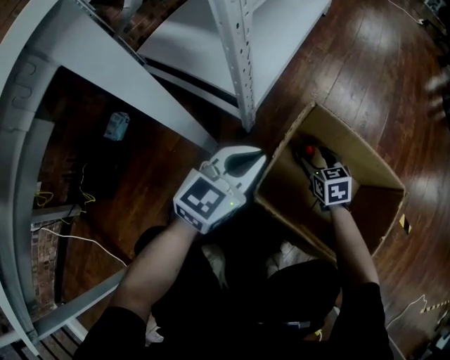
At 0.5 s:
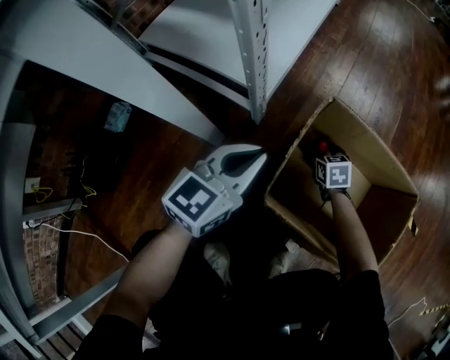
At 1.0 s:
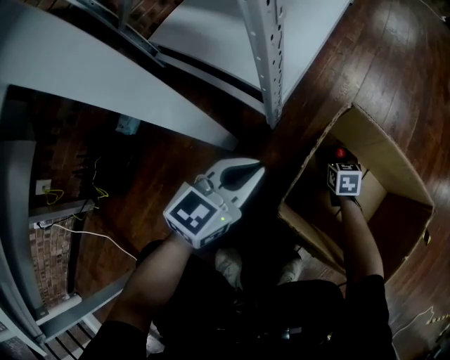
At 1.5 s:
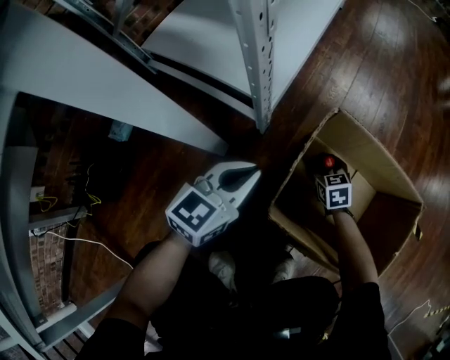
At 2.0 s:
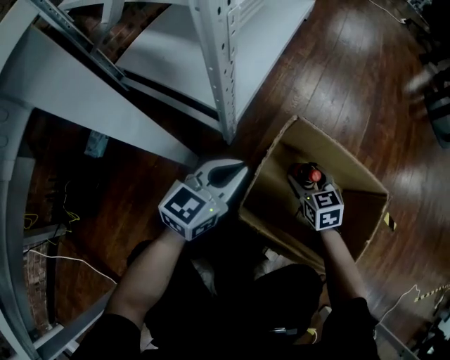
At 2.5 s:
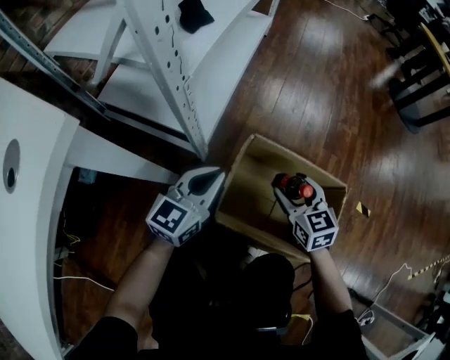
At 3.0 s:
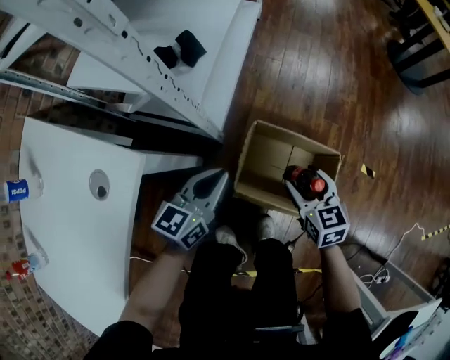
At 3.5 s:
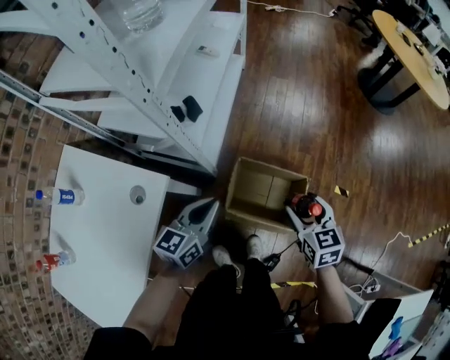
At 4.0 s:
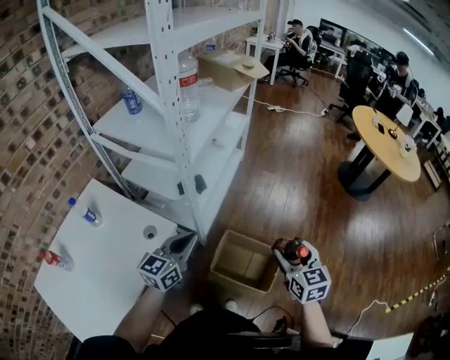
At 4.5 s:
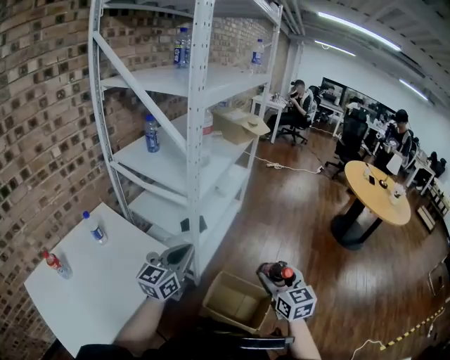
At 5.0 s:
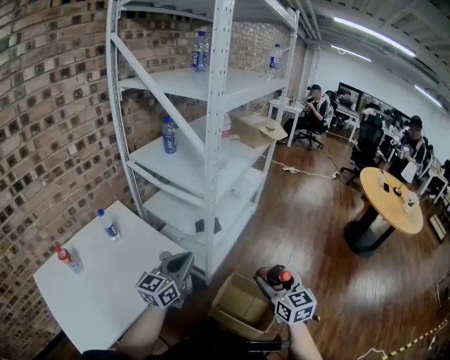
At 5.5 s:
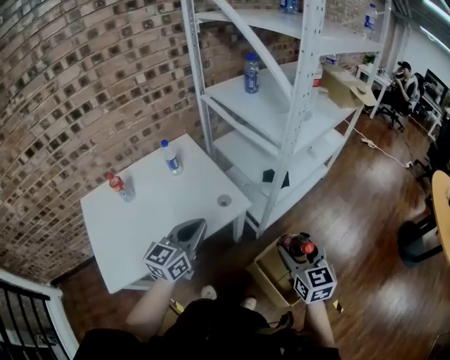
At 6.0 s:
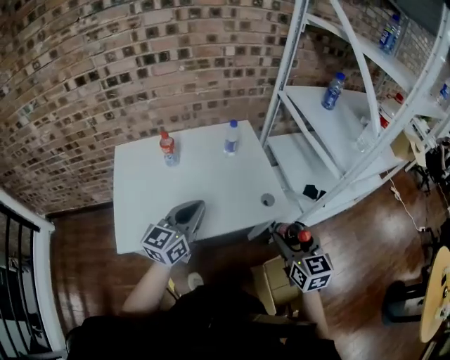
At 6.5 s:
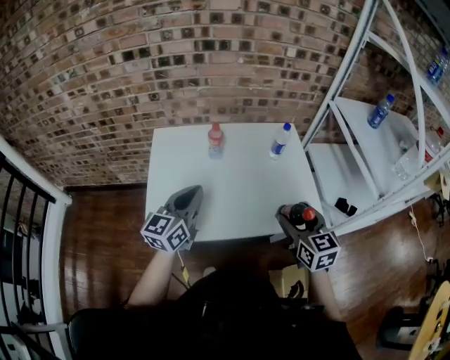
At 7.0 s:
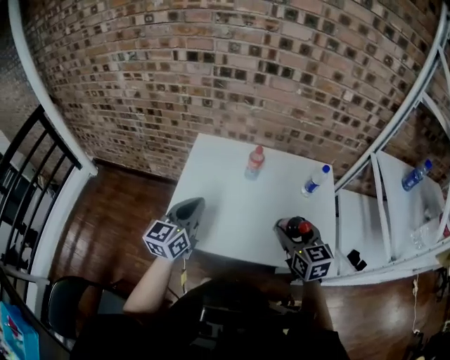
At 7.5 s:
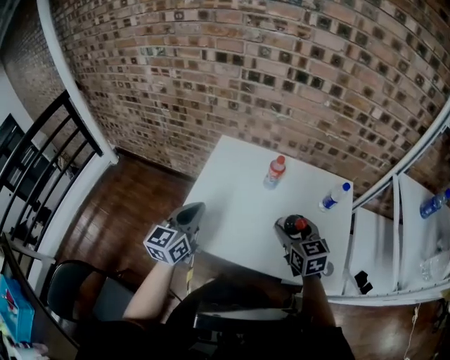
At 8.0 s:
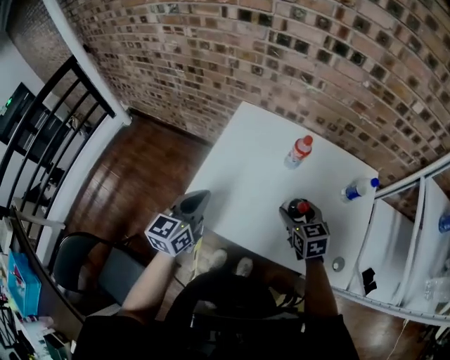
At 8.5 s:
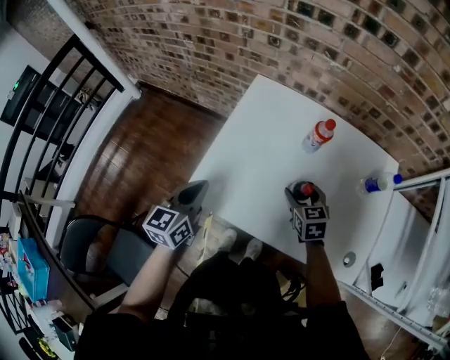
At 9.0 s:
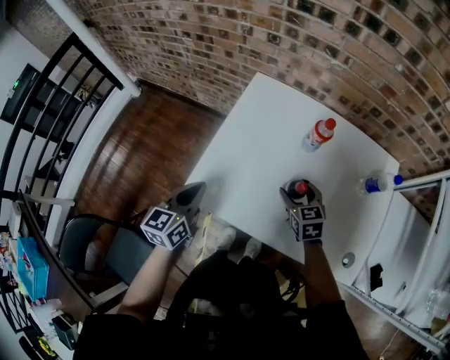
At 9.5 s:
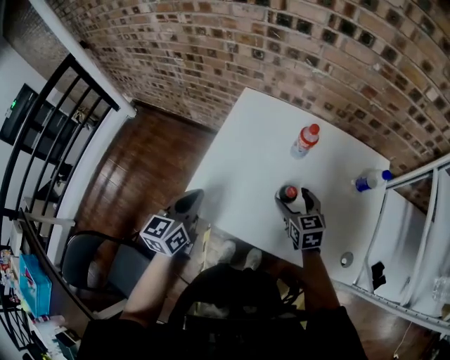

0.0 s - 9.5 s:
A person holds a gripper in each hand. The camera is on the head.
0.0 s - 2.0 s: The right gripper goes downward and returns, roughly 15 cm each way.
2.0 s - 4.0 s: The two grippers go approximately 70 cm upward. The right gripper swivels about 20 degrees.
4.0 s - 5.5 s: The right gripper changes place by some 20 cm, and rotates approximately 30 degrees; the left gripper changes place by approximately 20 cm, and swivels some 30 degrees.
5.5 s - 7.5 s: The pair of grippers is taken approximately 50 cm. The right gripper turns by roughly 60 degrees, while the left gripper turns by about 60 degrees.
7.5 s - 9.5 s: The right gripper heads downward and forward, covering roughly 15 cm; the left gripper moves downward, approximately 10 cm.

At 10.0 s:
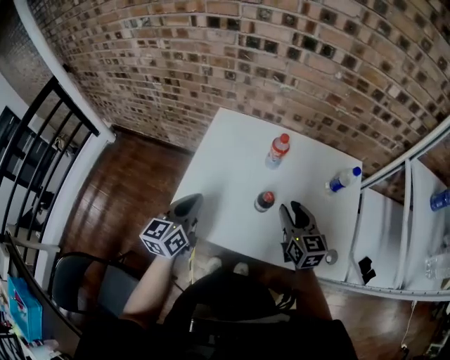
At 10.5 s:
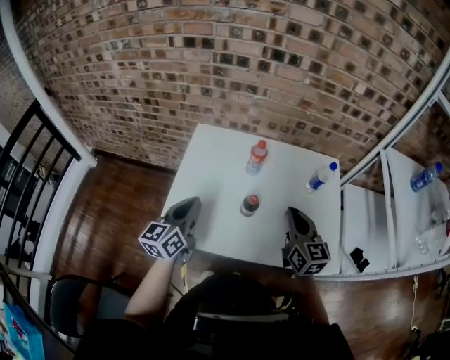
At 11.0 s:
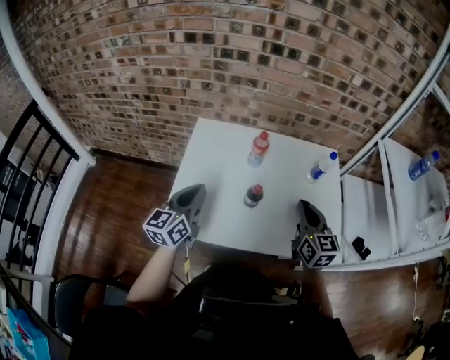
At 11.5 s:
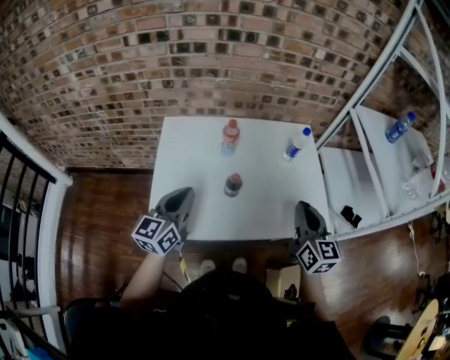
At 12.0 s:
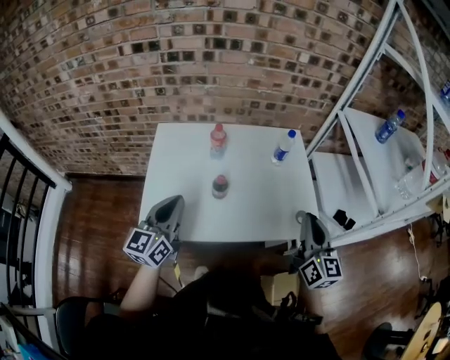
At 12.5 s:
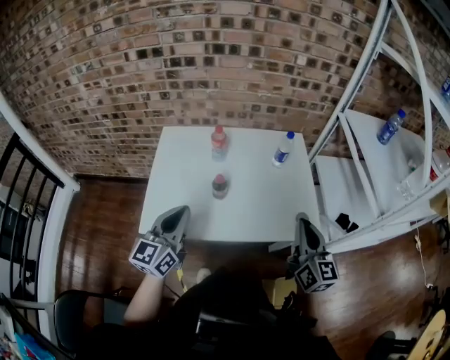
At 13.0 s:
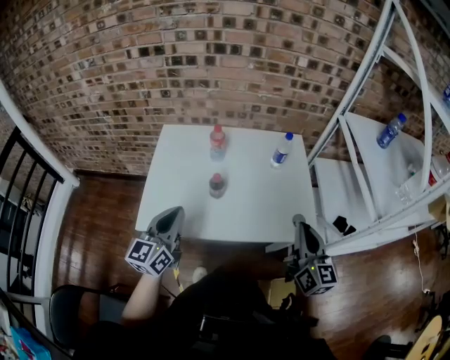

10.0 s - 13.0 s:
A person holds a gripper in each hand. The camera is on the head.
10.0 s - 11.5 s: The left gripper goes about 5 cm to the right, and turns by approximately 20 degrees. The right gripper goes approximately 20 cm backward, to the right and upward, changes its angle by about 30 degrees, and closes up.
11.5 s - 13.0 s: The left gripper shifts about 10 cm backward and to the right; the right gripper shifts roughly 10 cm to the right and backward.

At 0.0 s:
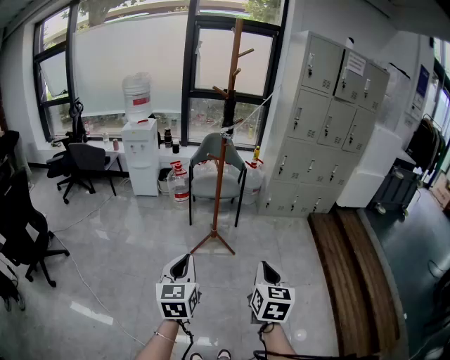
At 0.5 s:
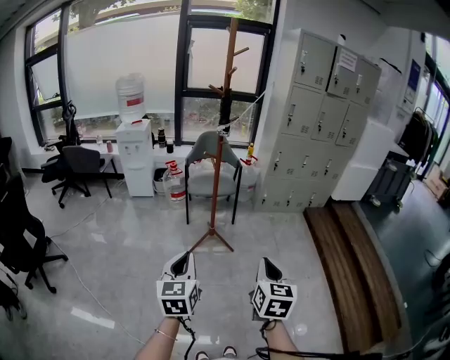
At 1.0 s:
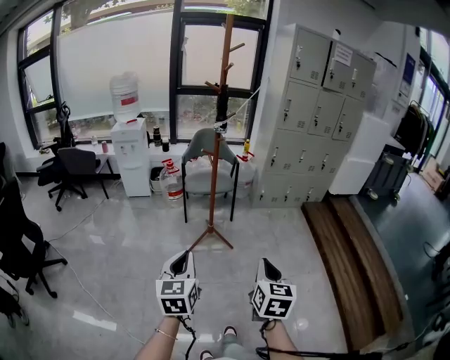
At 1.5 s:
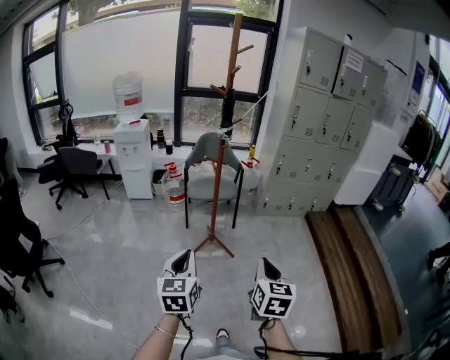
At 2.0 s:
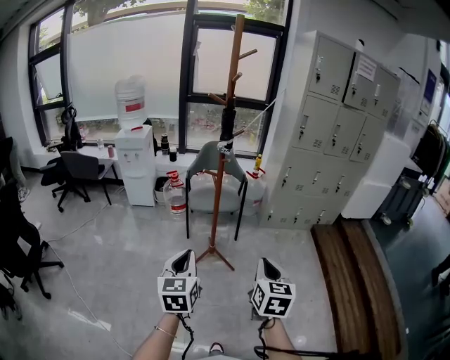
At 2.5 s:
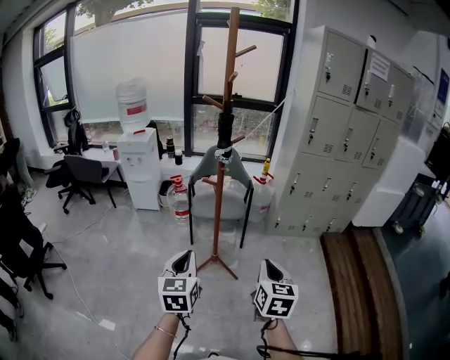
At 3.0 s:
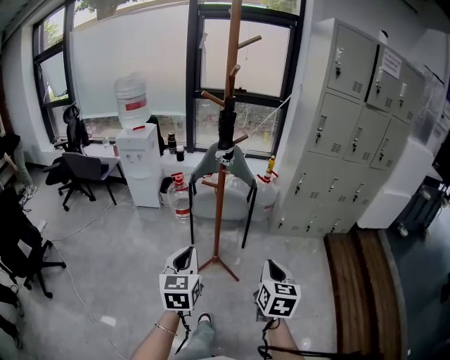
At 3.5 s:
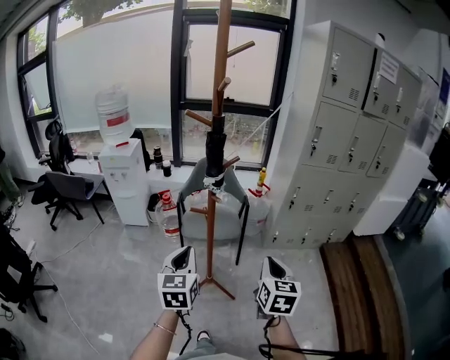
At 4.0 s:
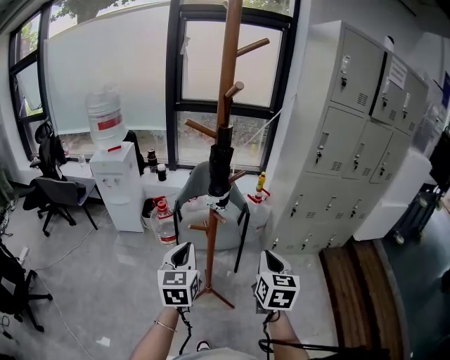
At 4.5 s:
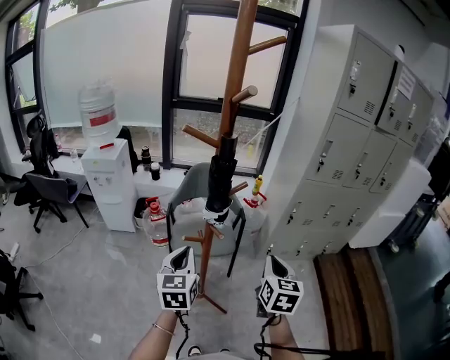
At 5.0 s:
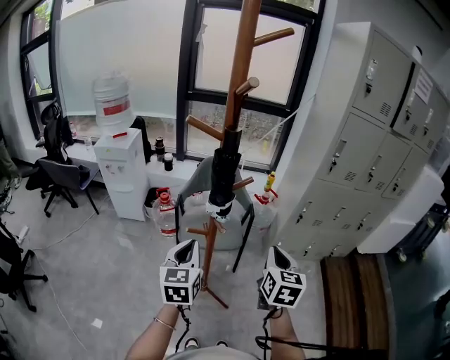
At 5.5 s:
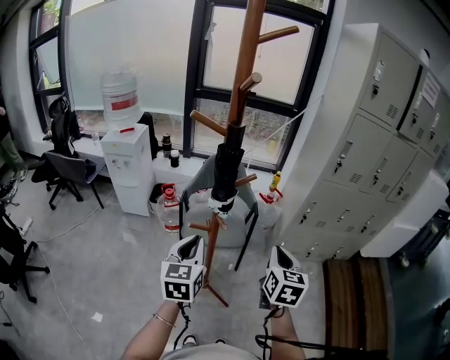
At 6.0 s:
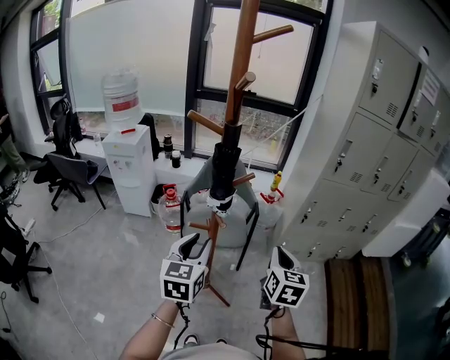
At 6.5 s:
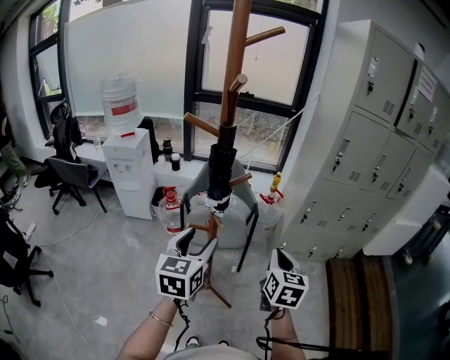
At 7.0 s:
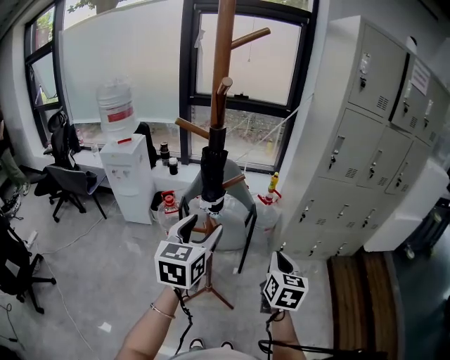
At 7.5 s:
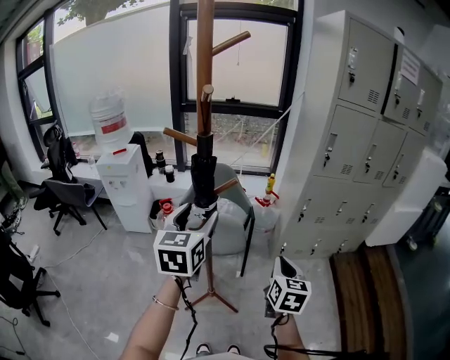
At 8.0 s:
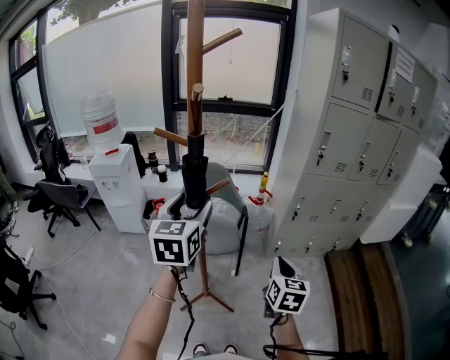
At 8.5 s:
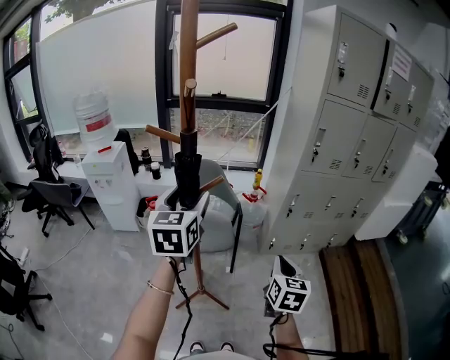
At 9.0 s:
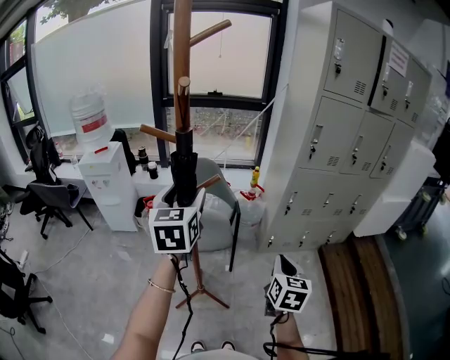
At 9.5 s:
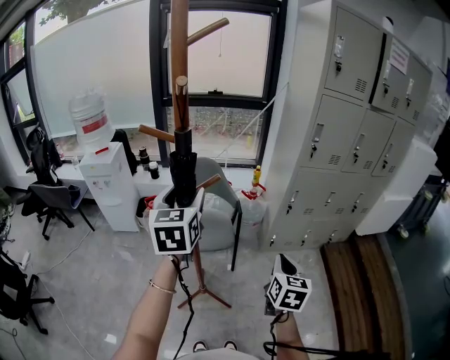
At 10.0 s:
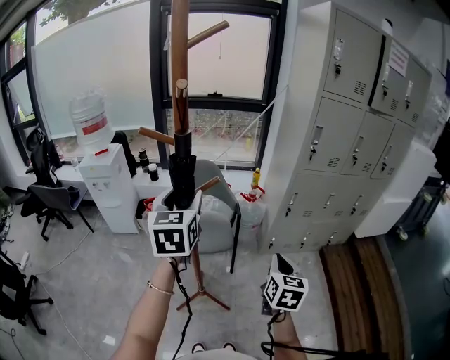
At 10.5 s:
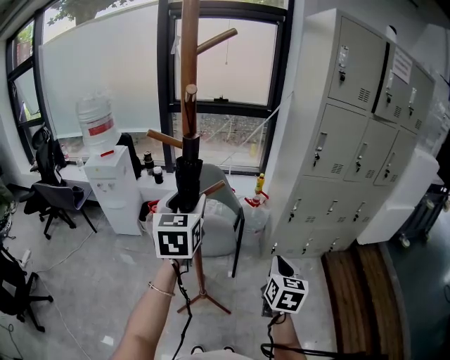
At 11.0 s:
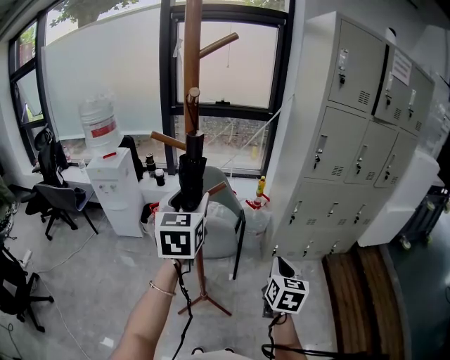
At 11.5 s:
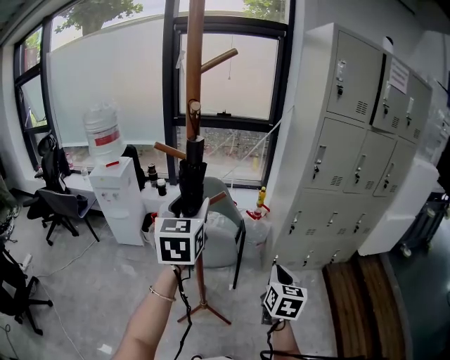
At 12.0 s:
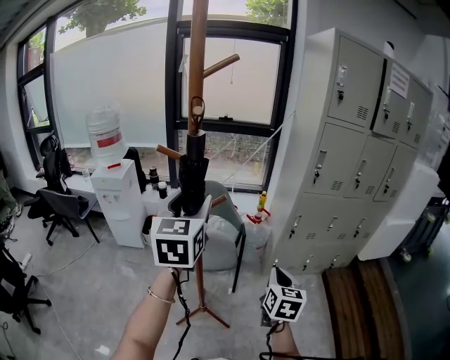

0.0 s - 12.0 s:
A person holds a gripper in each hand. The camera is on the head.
0.0 s - 2.0 s: The two grippers go about 15 cm forward.
2.0 s - 4.0 s: Both grippers travel together forward, approximately 40 cm.
4.0 s - 6.0 s: The right gripper goes roughly 5 cm forward; the left gripper moves about 5 cm, and opens up.
6.0 s - 8.0 s: The right gripper is displaced to the right by some 5 cm. The left gripper heads upward and forward, covering about 15 cm, and opens.
8.0 s - 10.0 s: The grippers make only small movements.
10.0 s - 12.0 s: The left gripper goes about 5 cm upward.

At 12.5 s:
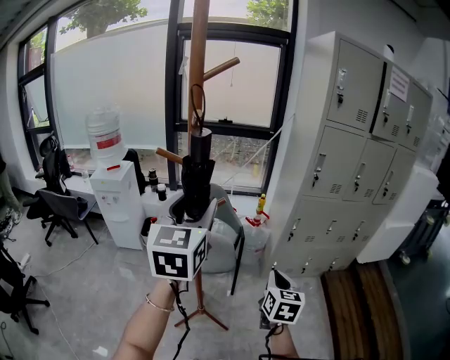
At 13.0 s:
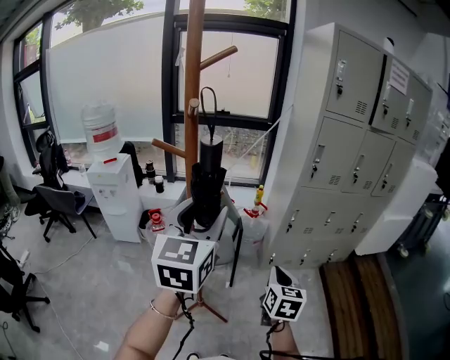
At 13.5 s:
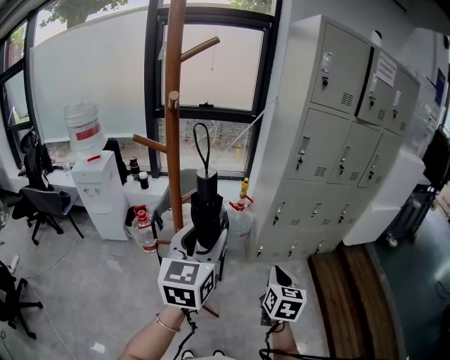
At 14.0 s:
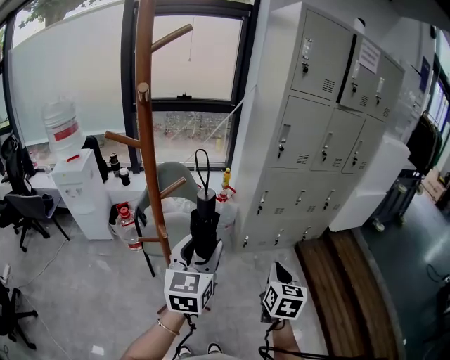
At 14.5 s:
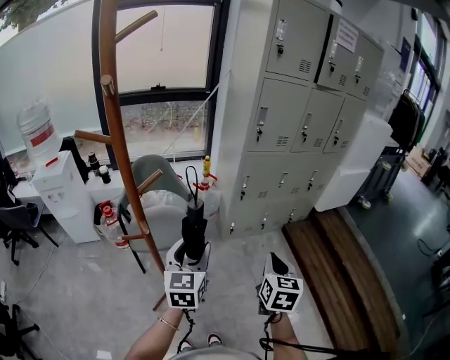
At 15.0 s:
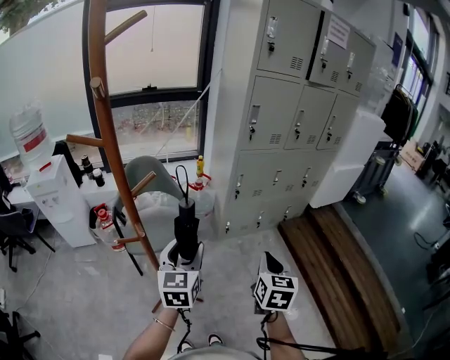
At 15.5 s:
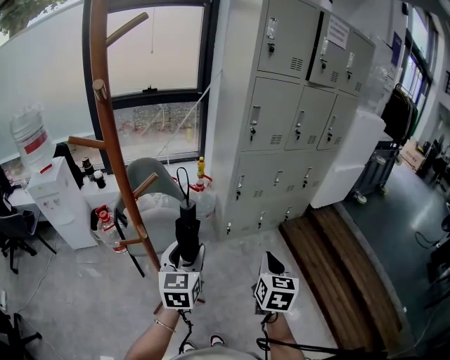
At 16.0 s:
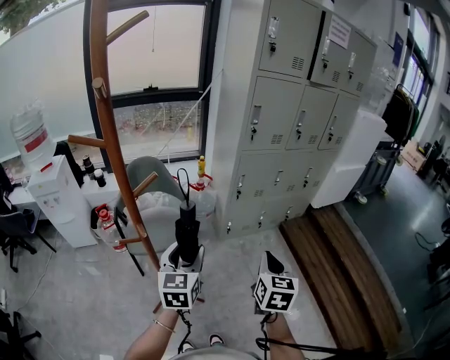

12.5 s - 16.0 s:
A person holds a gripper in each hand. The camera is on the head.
12.5 s - 14.5 s: The left gripper travels downward and to the right by roughly 30 cm, and rotates some 20 degrees; the right gripper travels to the right by some 10 cm.
14.5 s - 16.0 s: There are only small adjustments of the grippers.
